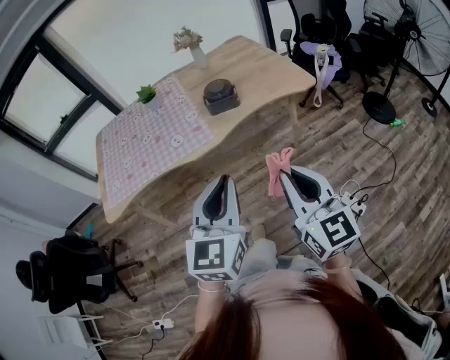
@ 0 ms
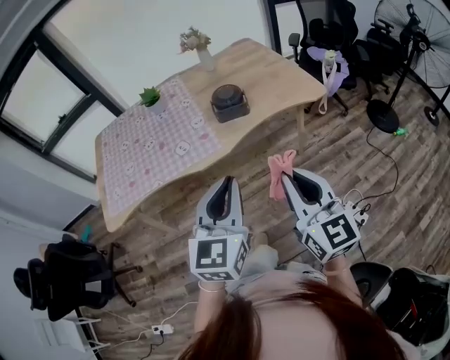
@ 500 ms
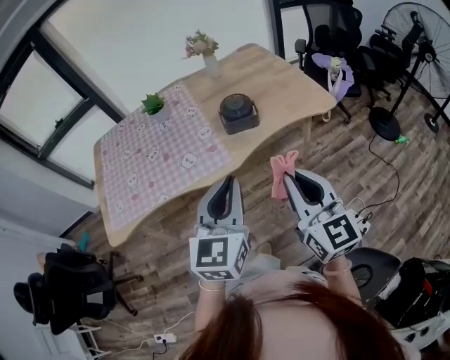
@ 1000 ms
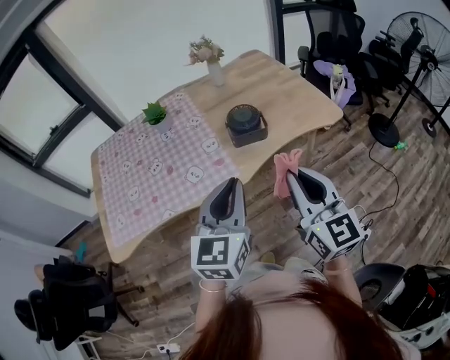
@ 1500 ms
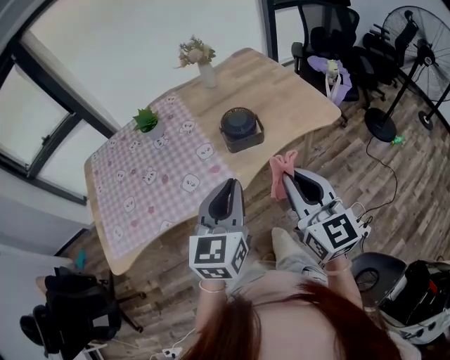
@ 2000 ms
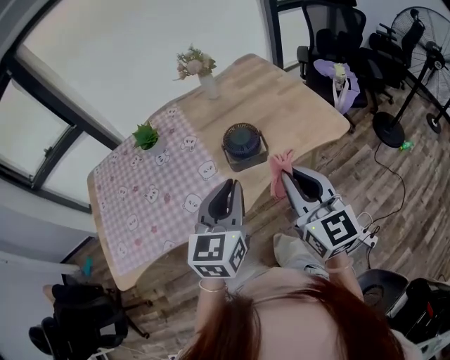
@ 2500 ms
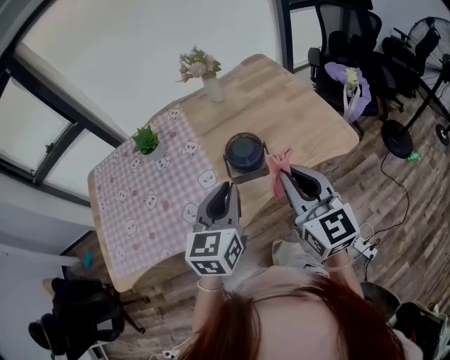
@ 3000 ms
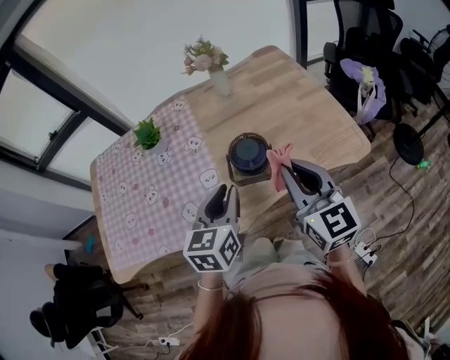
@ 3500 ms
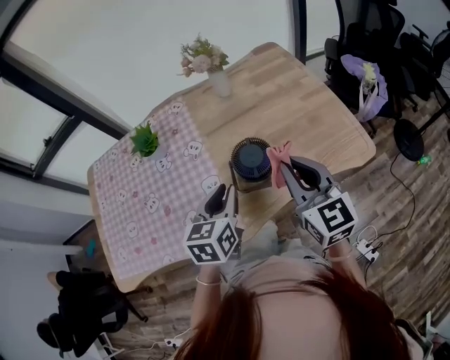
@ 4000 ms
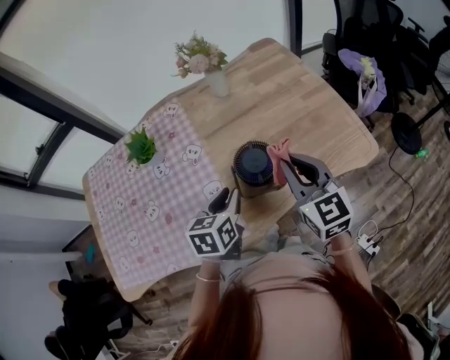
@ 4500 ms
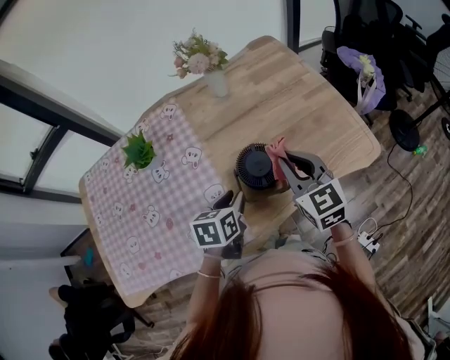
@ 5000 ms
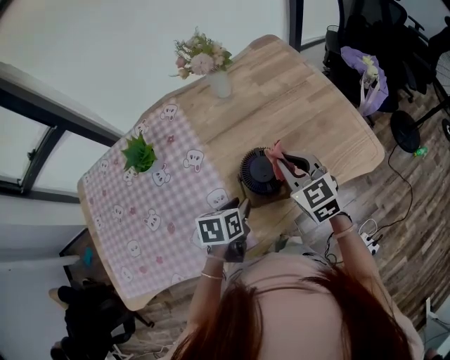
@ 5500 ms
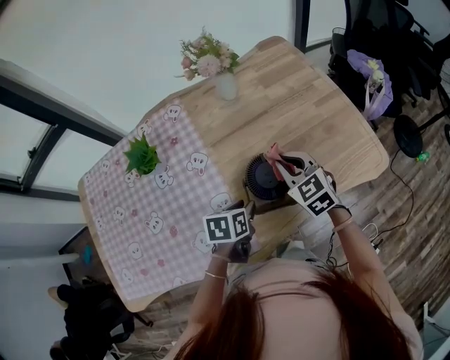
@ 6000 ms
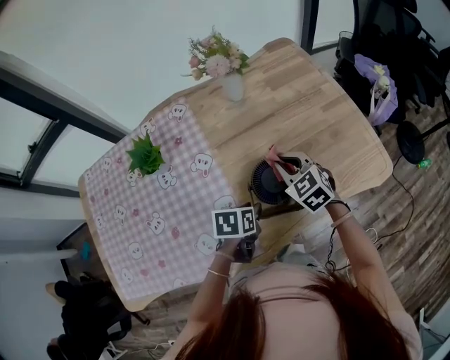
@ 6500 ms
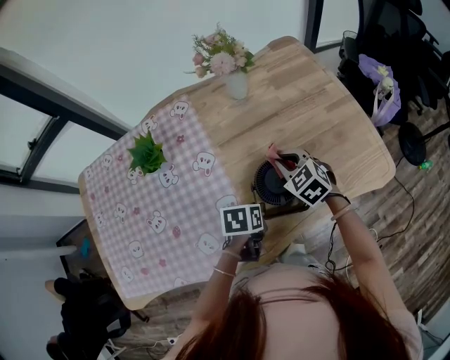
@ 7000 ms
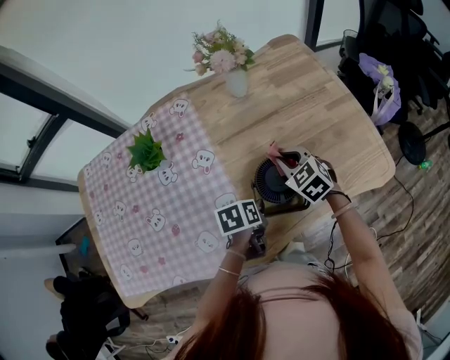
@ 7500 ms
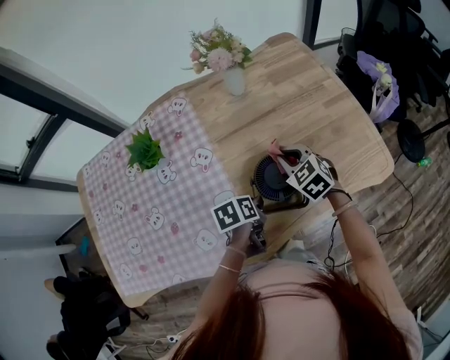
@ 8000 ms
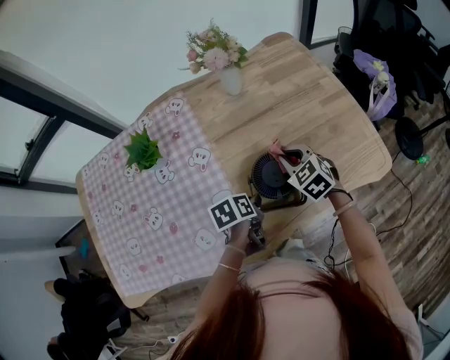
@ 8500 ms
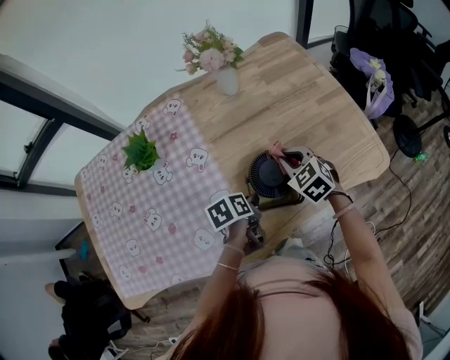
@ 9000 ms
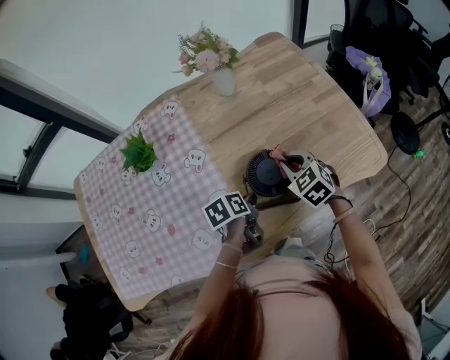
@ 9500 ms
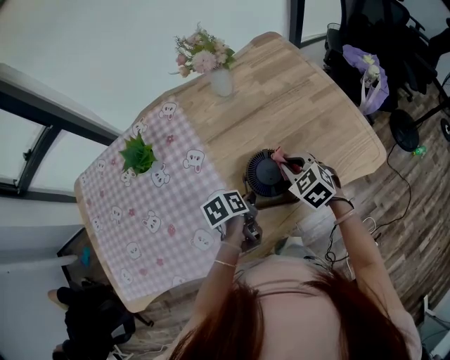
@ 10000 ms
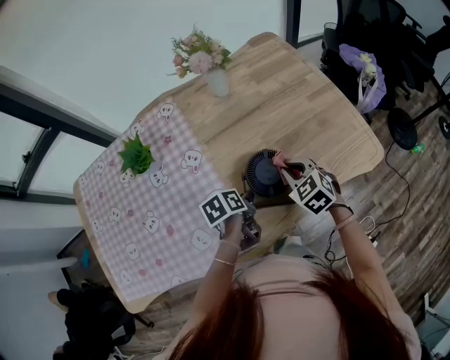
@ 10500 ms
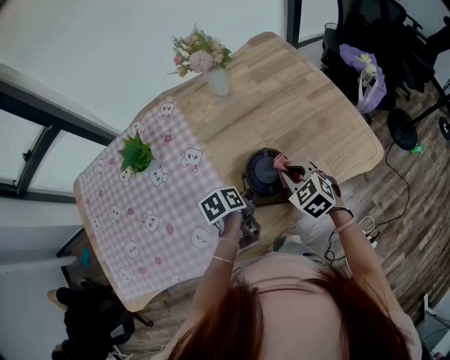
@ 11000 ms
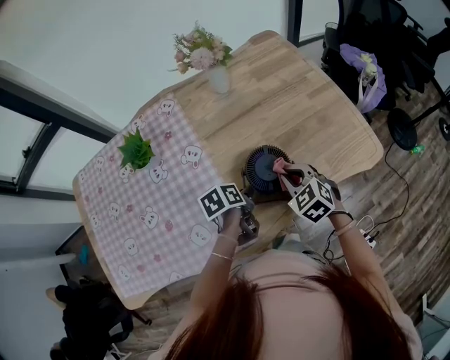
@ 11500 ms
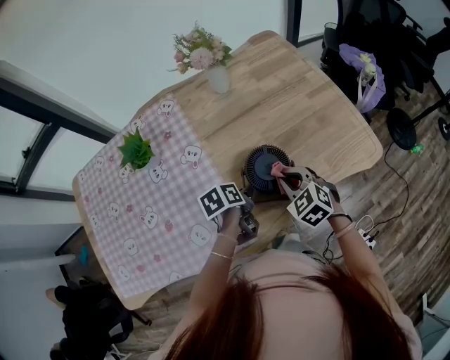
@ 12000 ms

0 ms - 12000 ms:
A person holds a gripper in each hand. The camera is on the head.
0 ms - 2000 ms: Both grippers move forward, some 25 cm.
2000 ms - 4000 ms: The right gripper shifts some 30 cm forward. The left gripper shifts roughly 30 cm forward and downward, and swivels some 20 degrees.
4000 ms - 6000 ms: The left gripper goes approximately 15 cm downward and forward, and turns by roughly 30 degrees. Meanwhile the right gripper is displaced downward, forward and to the left by about 20 cm, and swivels about 30 degrees.
6000 ms - 8000 ms: The left gripper turns by roughly 20 degrees. The right gripper shifts roughly 5 cm downward.
8000 ms - 10000 ms: The right gripper ends up roughly 5 cm from where it was.
10000 ms - 12000 ms: The right gripper shifts some 5 cm backward.

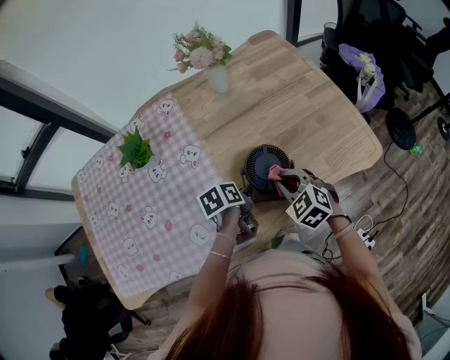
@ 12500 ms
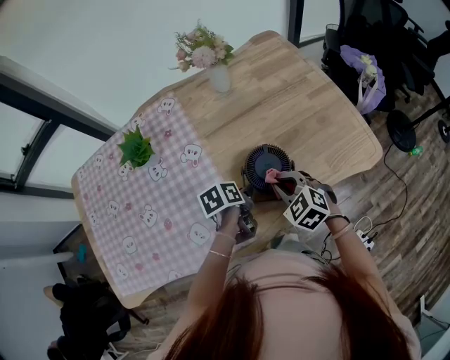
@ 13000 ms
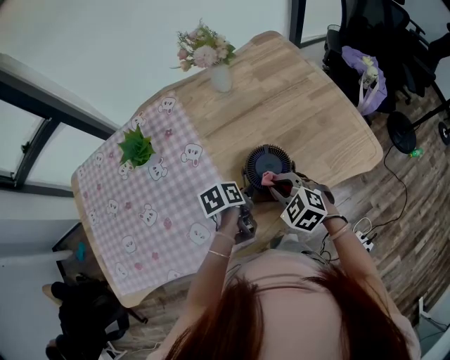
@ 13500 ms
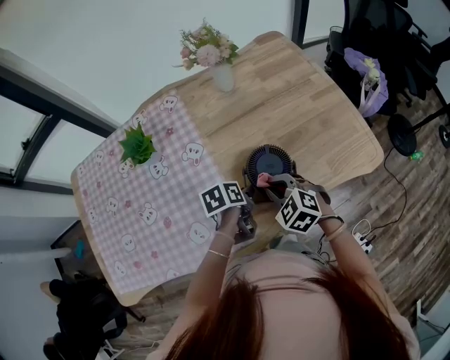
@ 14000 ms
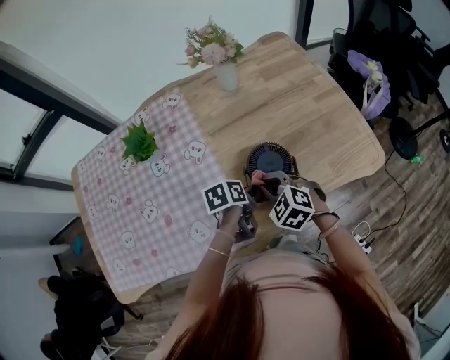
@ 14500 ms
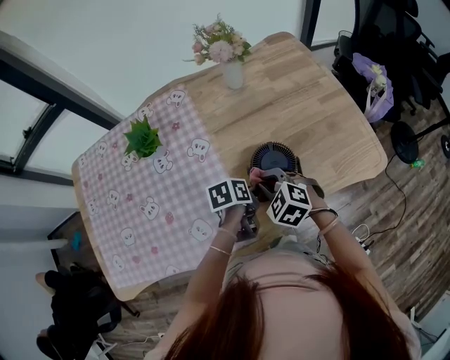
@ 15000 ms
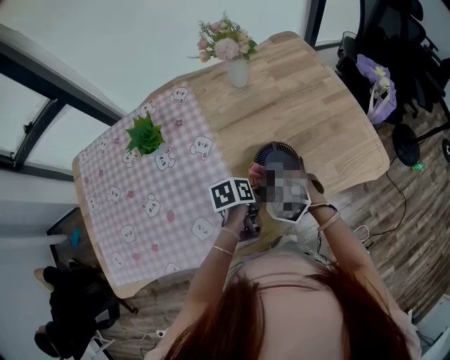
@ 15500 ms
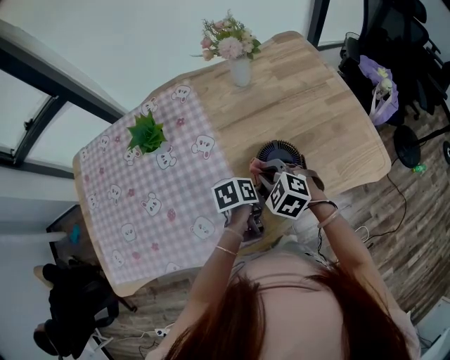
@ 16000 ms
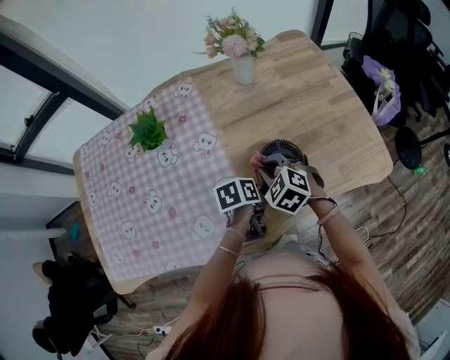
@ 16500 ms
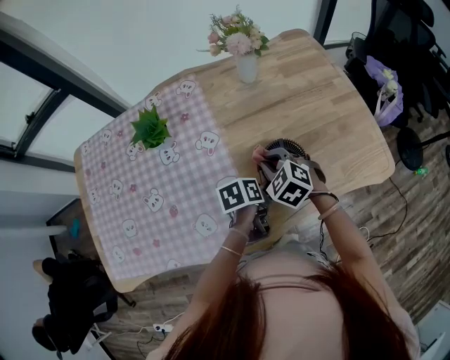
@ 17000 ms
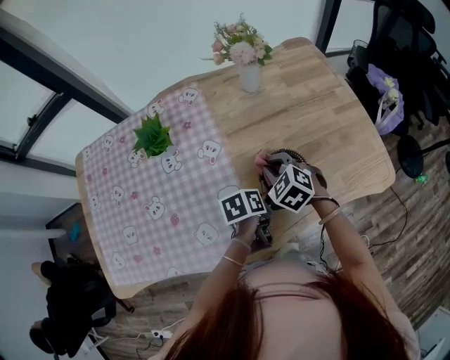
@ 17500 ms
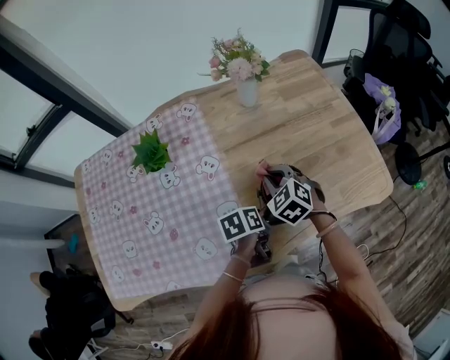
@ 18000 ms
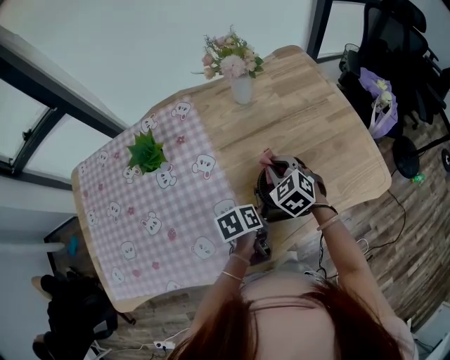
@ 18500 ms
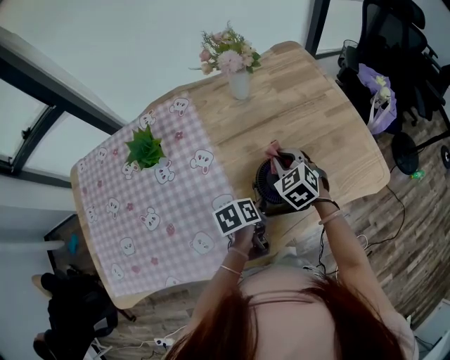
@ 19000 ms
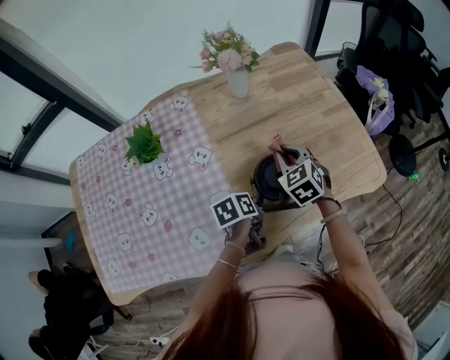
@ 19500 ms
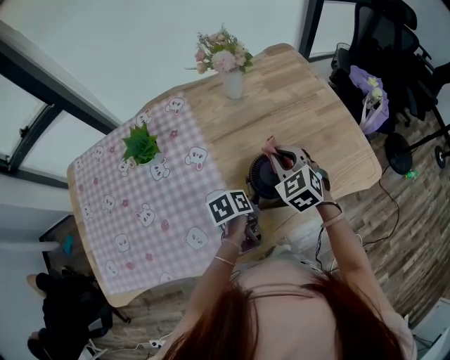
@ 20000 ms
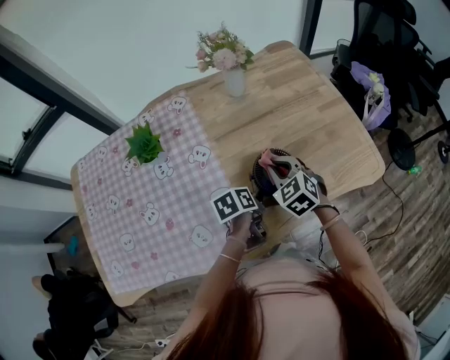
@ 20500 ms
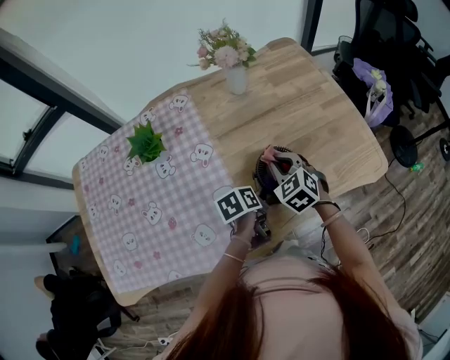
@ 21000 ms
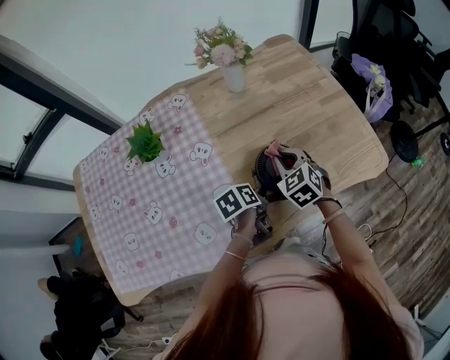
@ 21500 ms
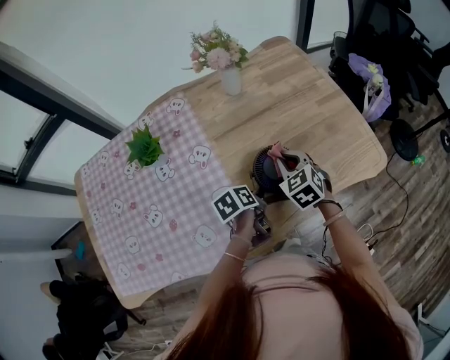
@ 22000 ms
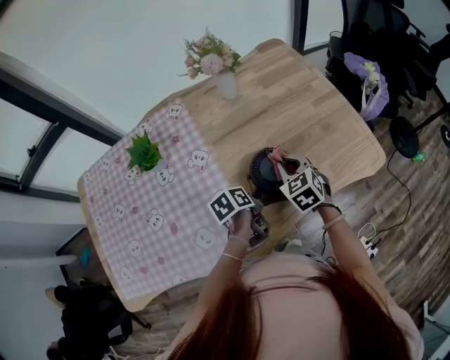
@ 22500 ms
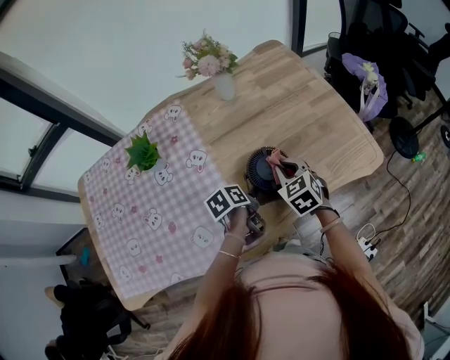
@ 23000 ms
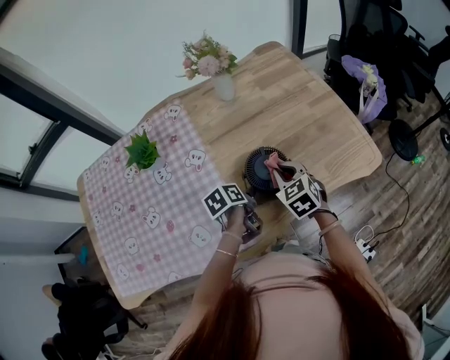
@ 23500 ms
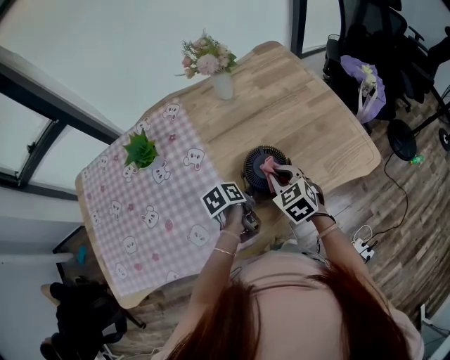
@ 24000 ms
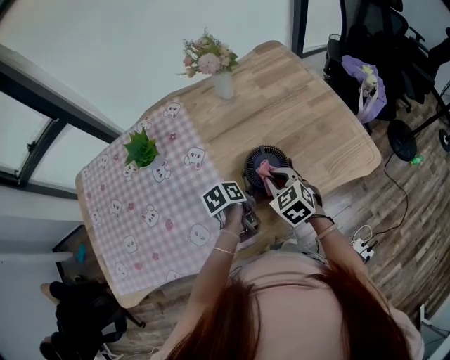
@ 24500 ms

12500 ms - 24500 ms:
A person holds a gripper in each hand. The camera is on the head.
12500 ms - 14500 ms: The right gripper is displaced to the left by roughly 5 cm.
14500 ms - 16500 ms: The right gripper changes place by some 5 cm.
16500 ms - 18500 ms: The right gripper is displaced forward by about 10 cm.
18500 ms - 20500 ms: The right gripper shifts by about 5 cm.
20500 ms - 22500 ms: The grippers make only small movements.
22500 ms - 24500 ms: The right gripper shifts some 5 cm backward.

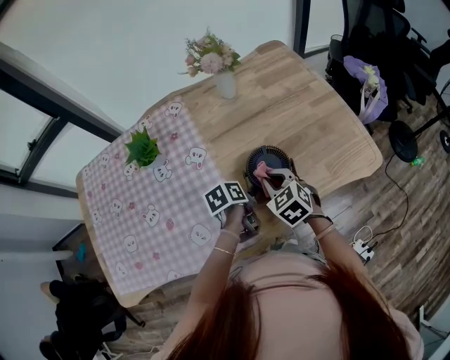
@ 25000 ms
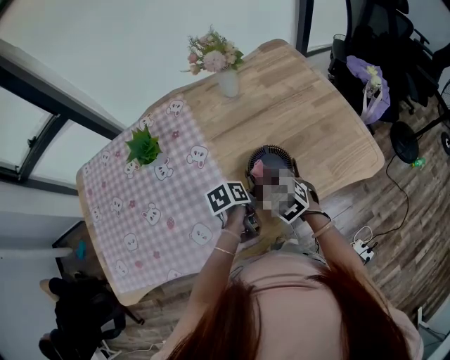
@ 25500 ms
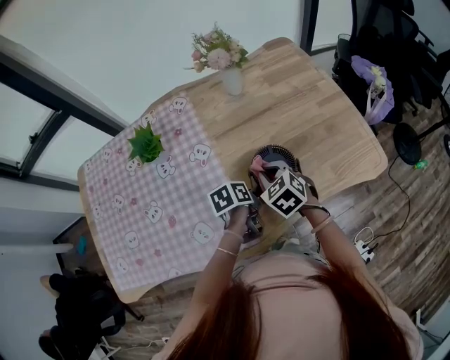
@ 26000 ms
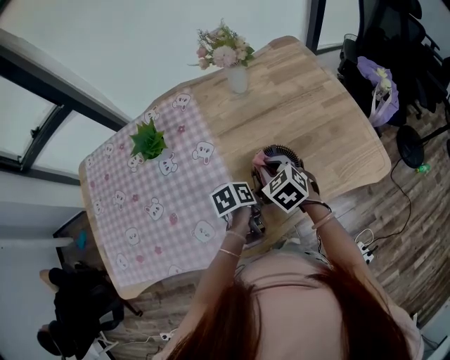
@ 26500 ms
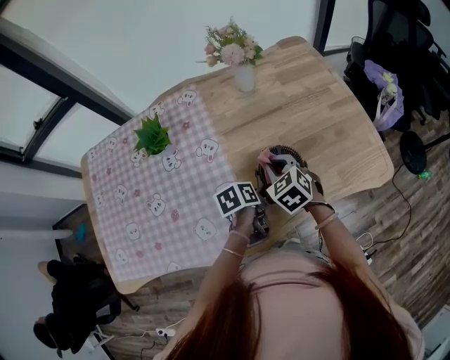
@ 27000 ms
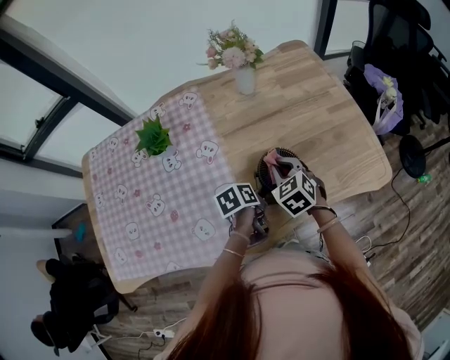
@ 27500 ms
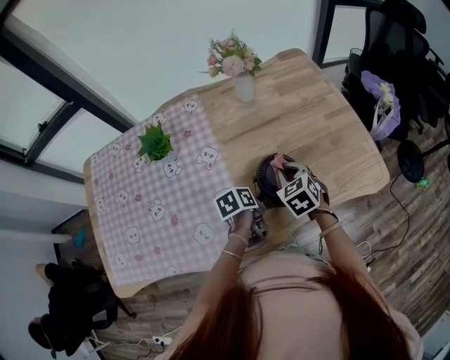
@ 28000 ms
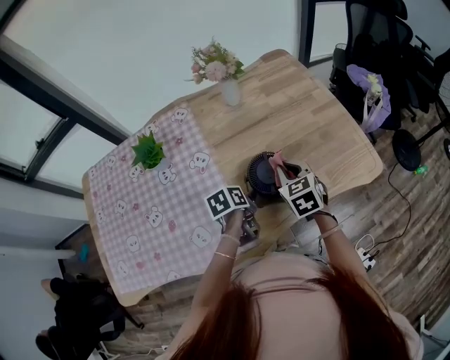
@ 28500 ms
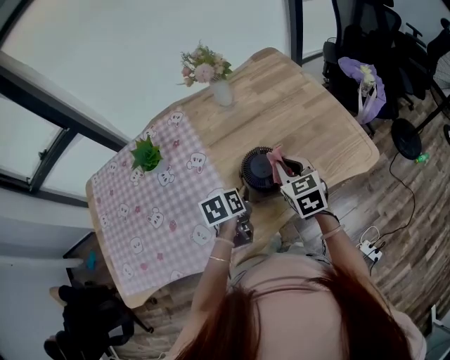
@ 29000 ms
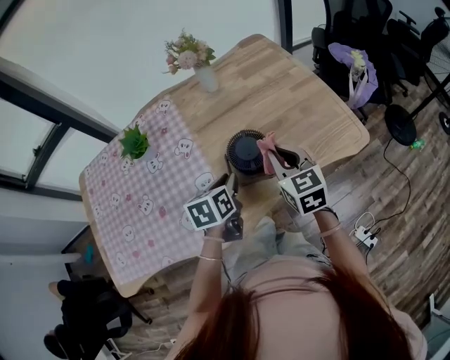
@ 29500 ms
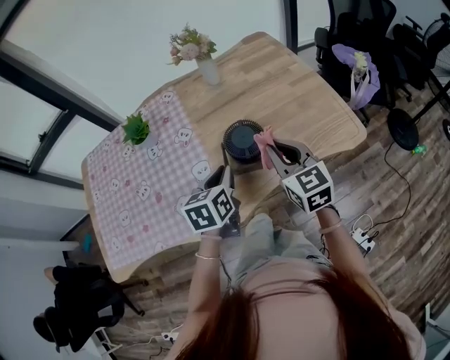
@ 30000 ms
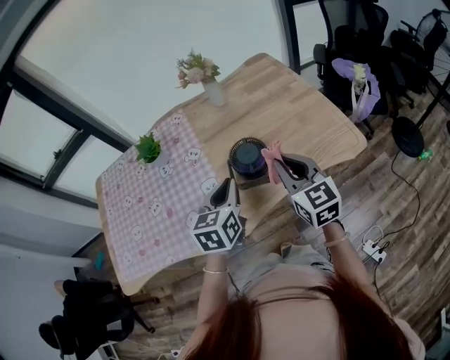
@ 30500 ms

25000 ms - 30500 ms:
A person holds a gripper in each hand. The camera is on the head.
25000 ms - 27000 ms: The right gripper moves about 5 cm.
27000 ms - 28500 ms: The right gripper heads to the right, covering roughly 10 cm.
28500 ms - 30500 ms: The right gripper goes about 20 cm backward, upward and to the right, and swivels approximately 30 degrees. The left gripper heads upward and backward, covering approximately 20 cm, rotates some 50 degrees, and closes its fingers.
